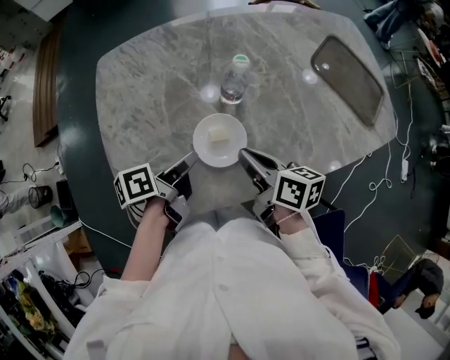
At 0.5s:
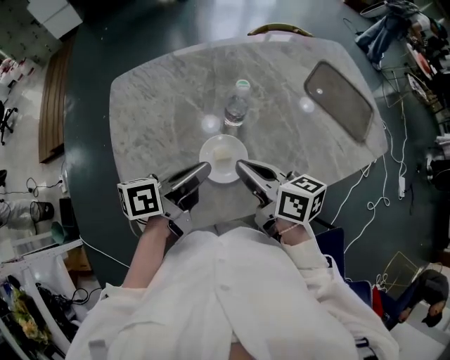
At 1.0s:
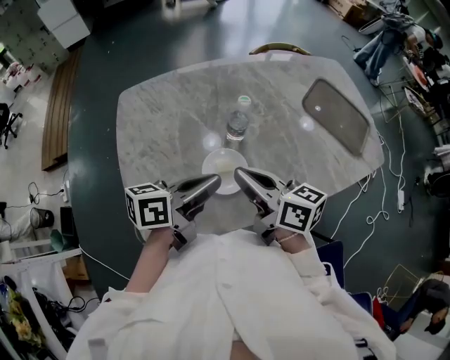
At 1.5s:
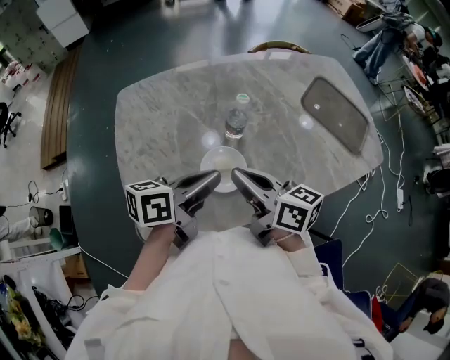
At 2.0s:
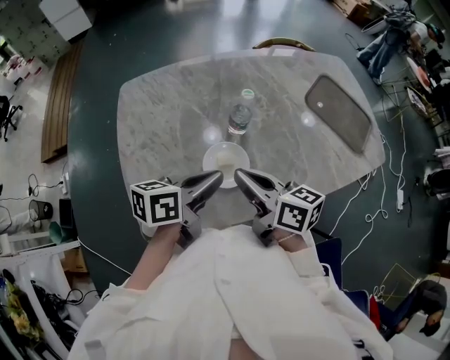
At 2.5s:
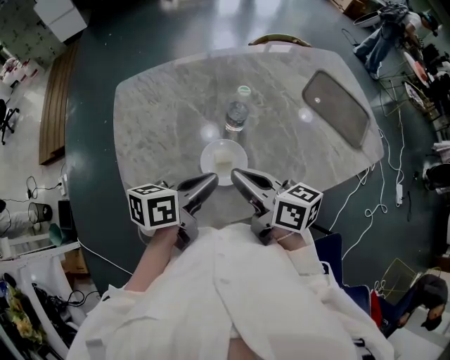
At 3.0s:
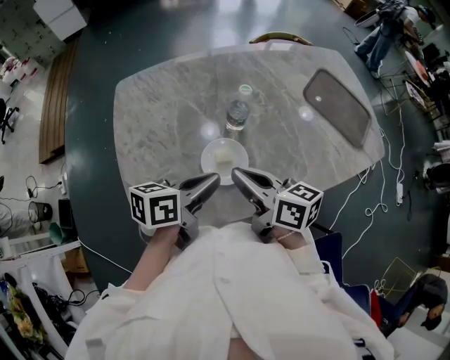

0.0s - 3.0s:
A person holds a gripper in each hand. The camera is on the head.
0.0s - 1.5s: The right gripper travels upward by about 10 cm.

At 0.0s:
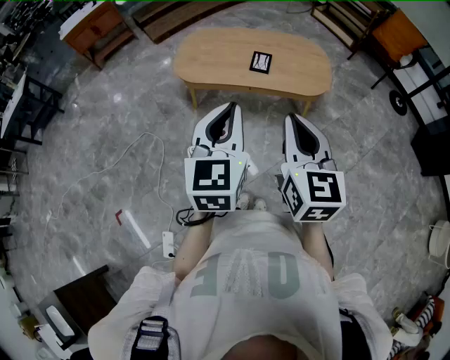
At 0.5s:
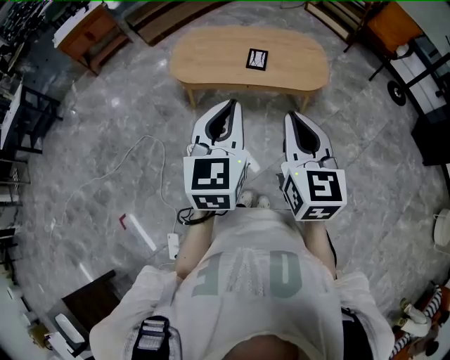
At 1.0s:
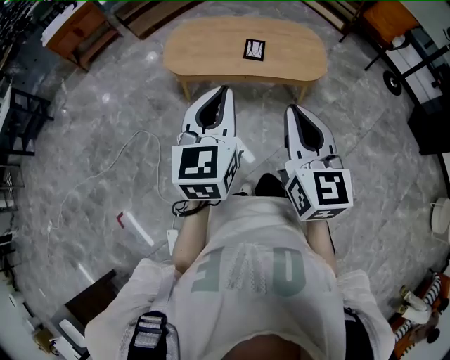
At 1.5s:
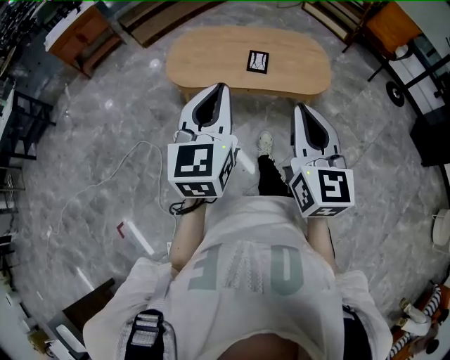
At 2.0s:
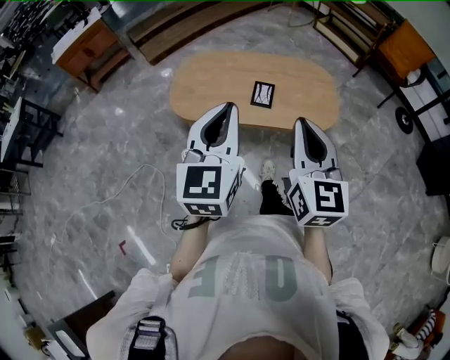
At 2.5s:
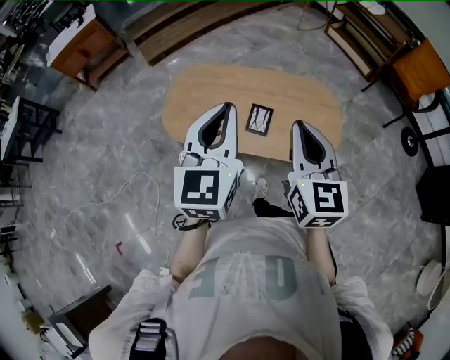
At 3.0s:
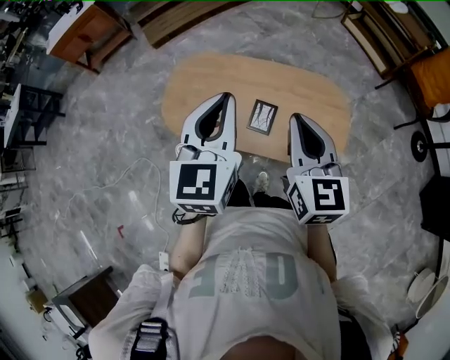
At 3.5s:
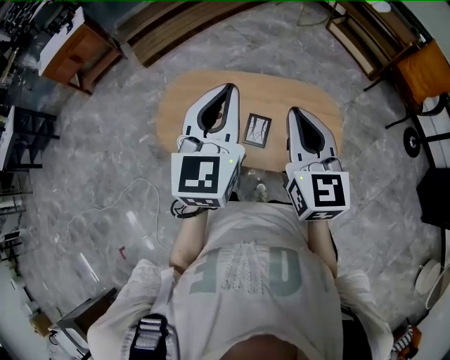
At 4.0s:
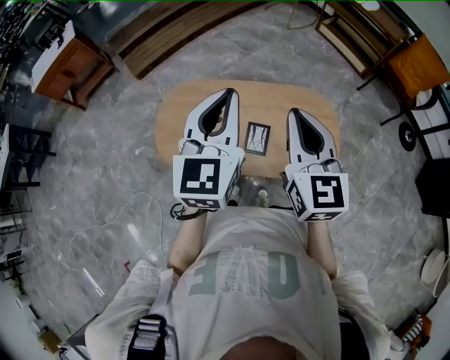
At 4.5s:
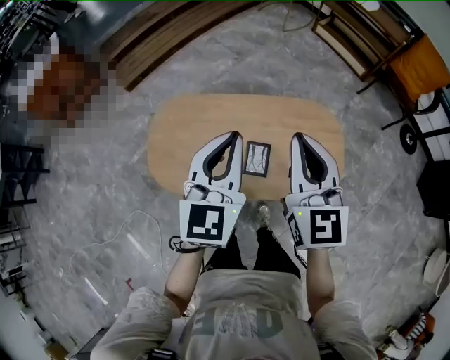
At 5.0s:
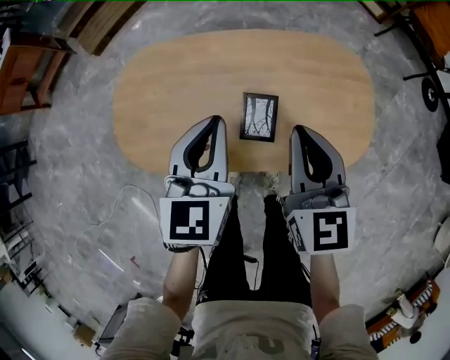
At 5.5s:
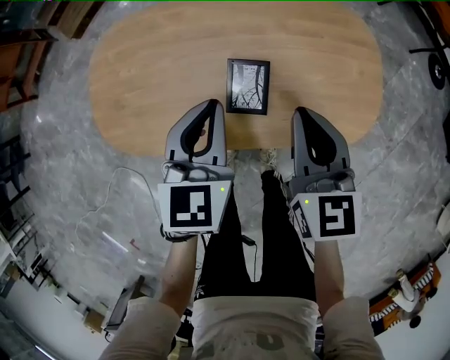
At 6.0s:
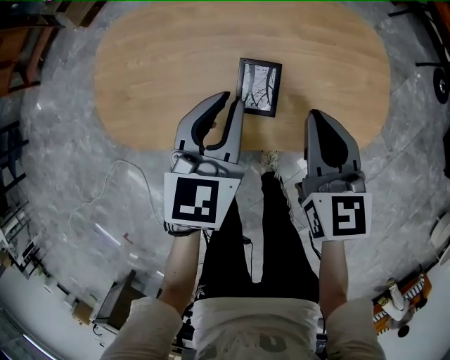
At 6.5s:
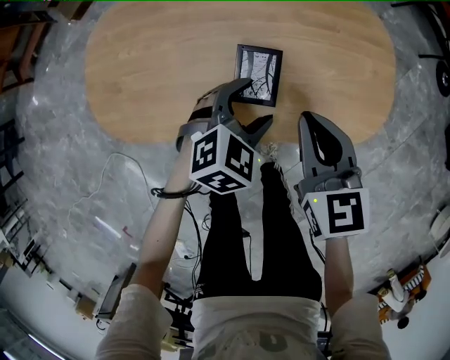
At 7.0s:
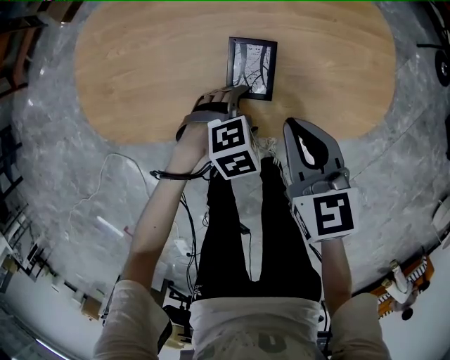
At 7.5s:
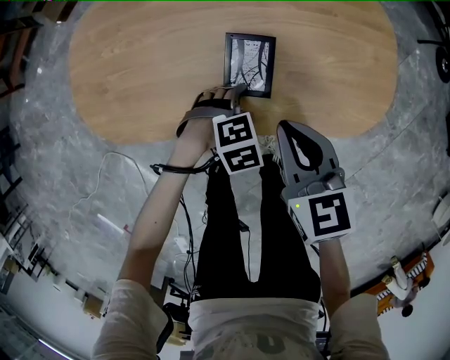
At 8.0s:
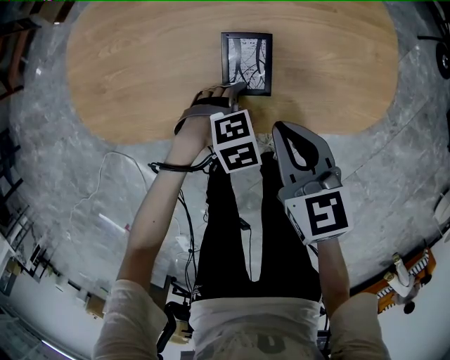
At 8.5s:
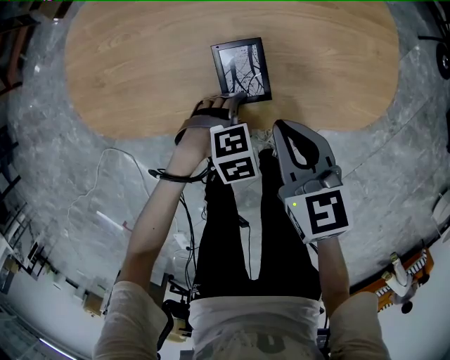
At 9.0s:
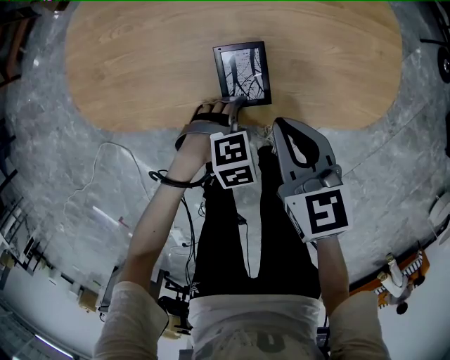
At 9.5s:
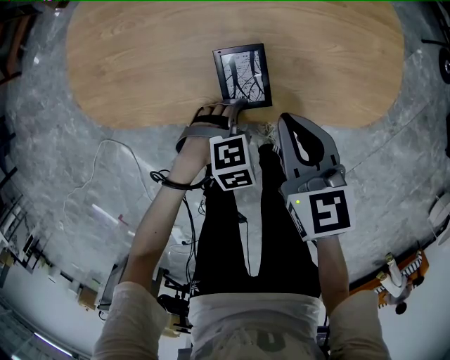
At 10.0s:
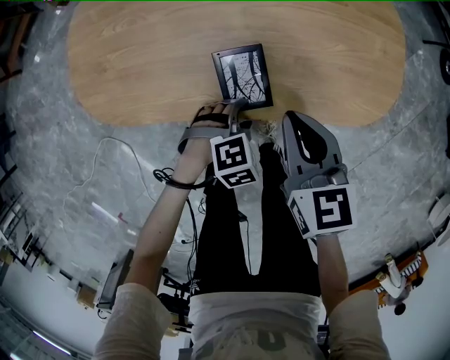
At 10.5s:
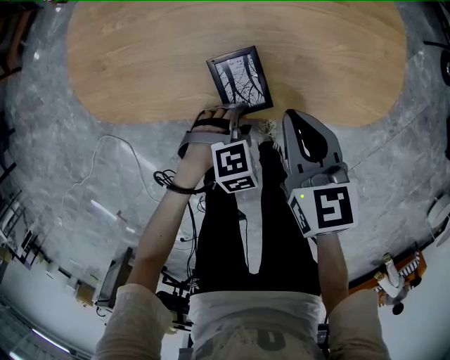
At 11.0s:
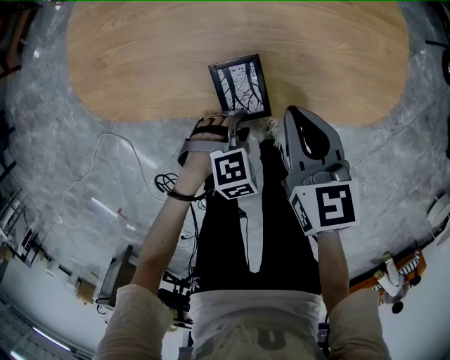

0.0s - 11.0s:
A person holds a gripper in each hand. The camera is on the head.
0.0s - 2.0s: The grippers both shift forward by approximately 20 cm.
2.0s - 3.5s: The two grippers go roughly 30 cm forward.
3.5s - 5.5s: The two grippers go some 35 cm downward. The right gripper swivels approximately 20 degrees, while the left gripper rotates roughly 20 degrees.
5.5s - 7.5s: The left gripper goes about 25 cm downward, points its fingers about 50 degrees further downward, and opens, while the right gripper heads downward, covering about 10 cm.
7.5s - 9.0s: The left gripper changes place by some 5 cm.
9.0s - 11.0s: The left gripper closes.

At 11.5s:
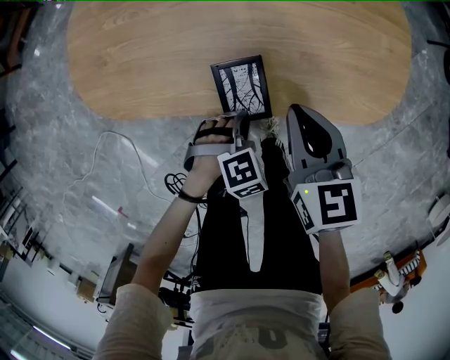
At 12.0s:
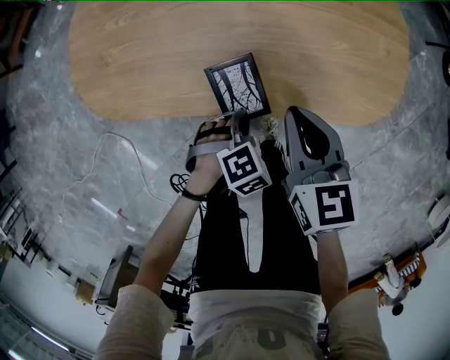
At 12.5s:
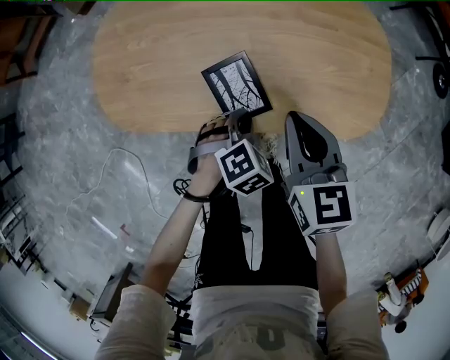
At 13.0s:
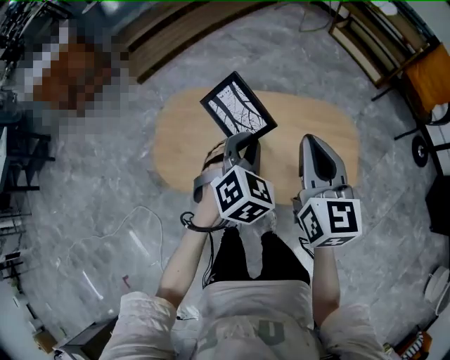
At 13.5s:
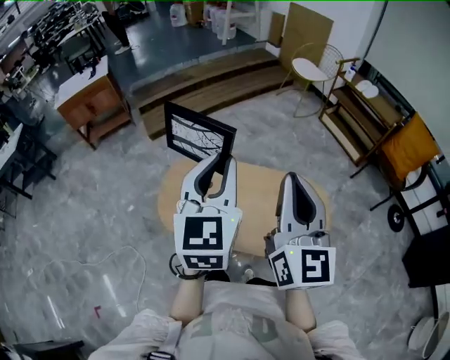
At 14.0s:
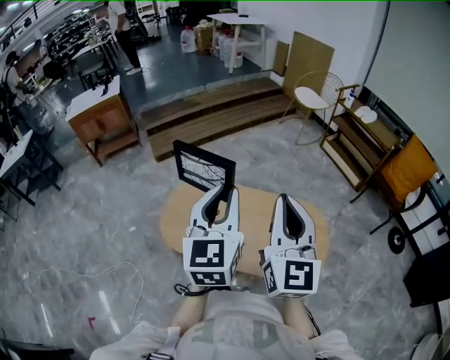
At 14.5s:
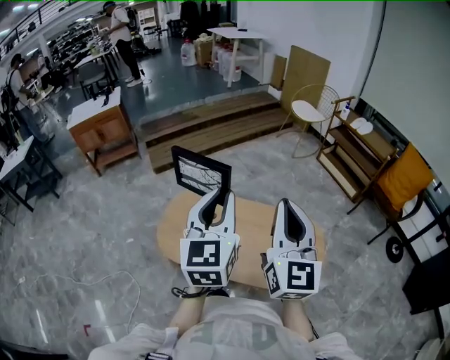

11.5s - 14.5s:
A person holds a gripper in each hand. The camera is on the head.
11.5s - 13.0s: Both grippers move upward, some 35 cm. The left gripper points its fingers approximately 30 degrees further upward; the right gripper rotates approximately 30 degrees.
13.0s - 14.5s: The left gripper goes roughly 30 cm upward, and tips its fingers upward by roughly 40 degrees. Meanwhile the right gripper travels upward and backward by roughly 25 cm, and turns by roughly 30 degrees.

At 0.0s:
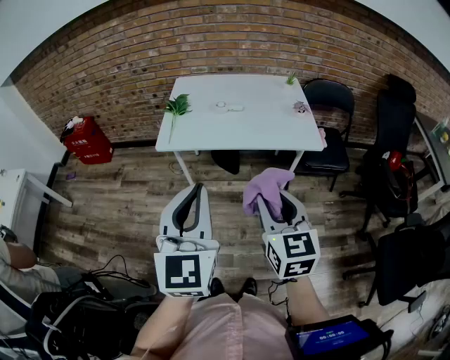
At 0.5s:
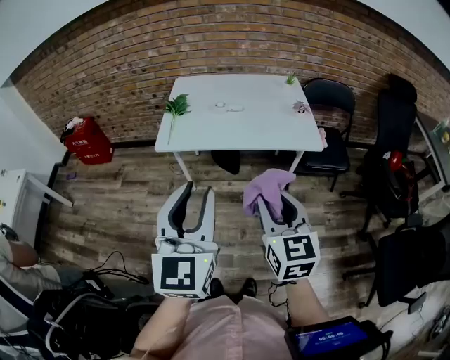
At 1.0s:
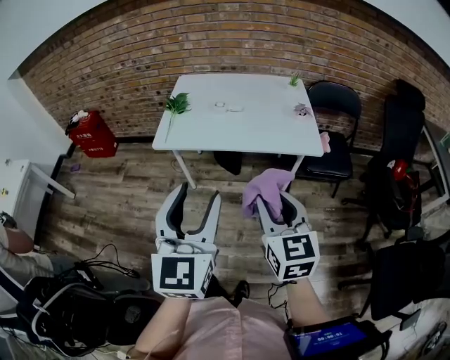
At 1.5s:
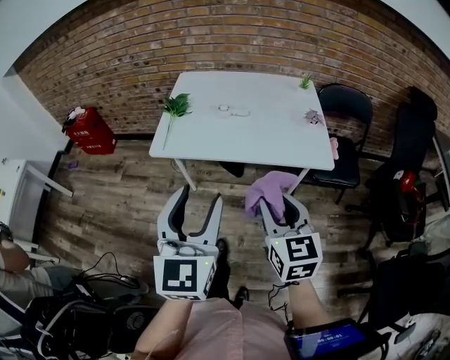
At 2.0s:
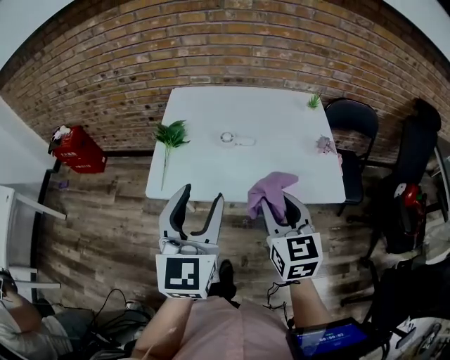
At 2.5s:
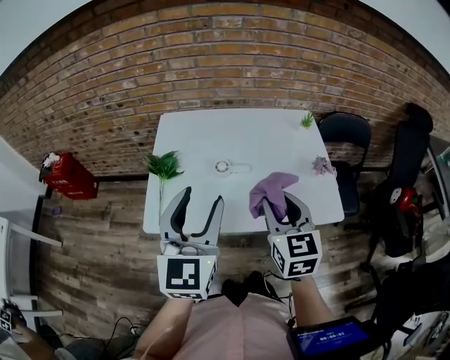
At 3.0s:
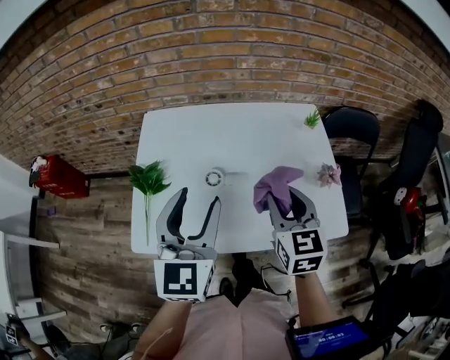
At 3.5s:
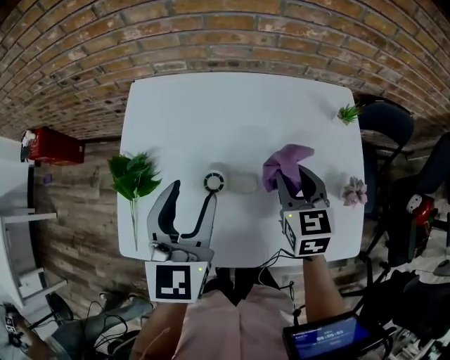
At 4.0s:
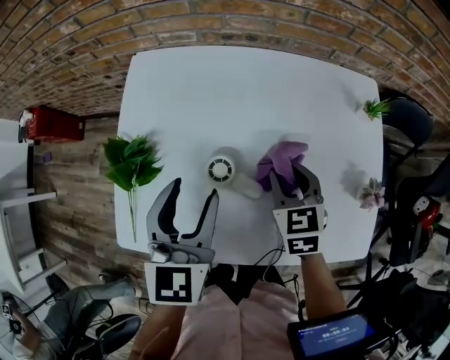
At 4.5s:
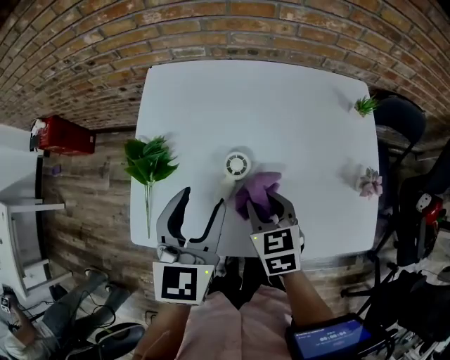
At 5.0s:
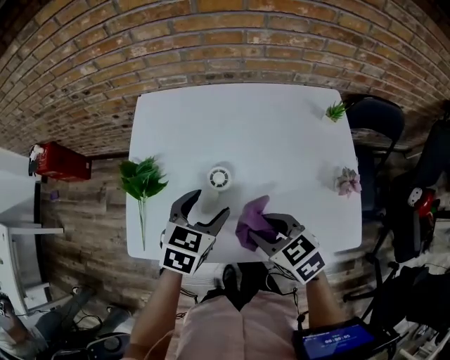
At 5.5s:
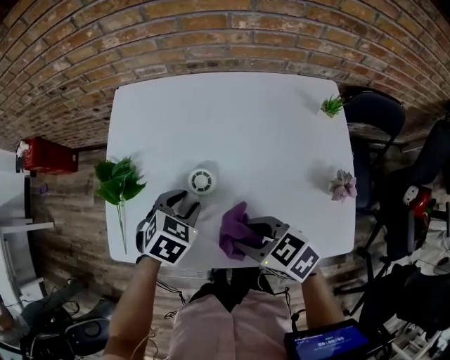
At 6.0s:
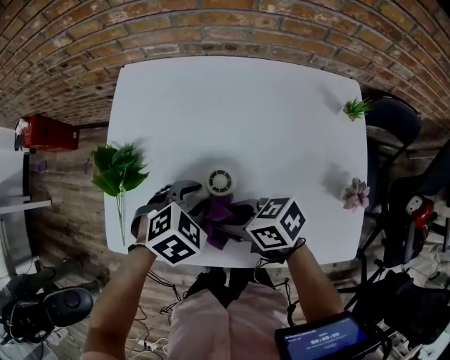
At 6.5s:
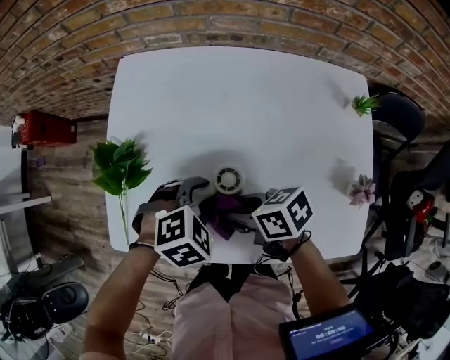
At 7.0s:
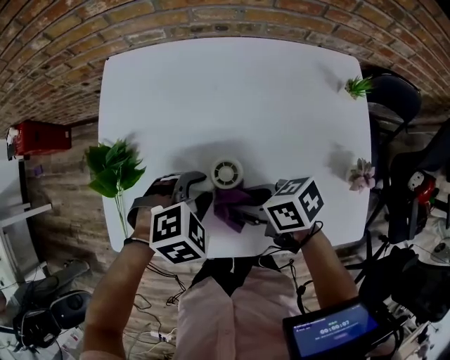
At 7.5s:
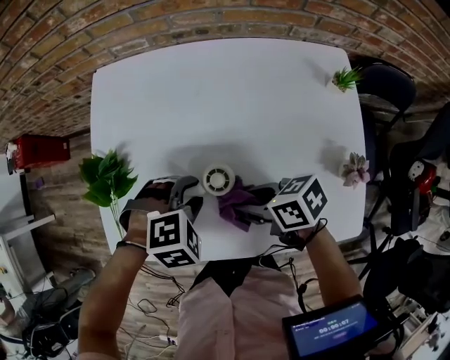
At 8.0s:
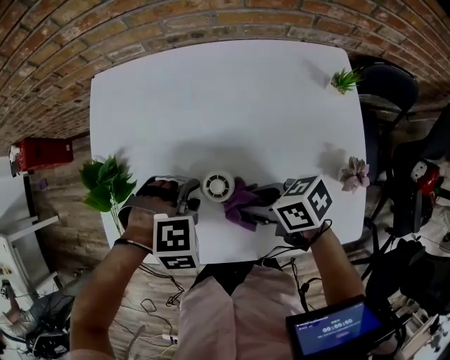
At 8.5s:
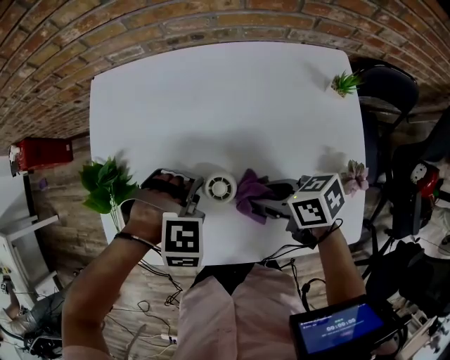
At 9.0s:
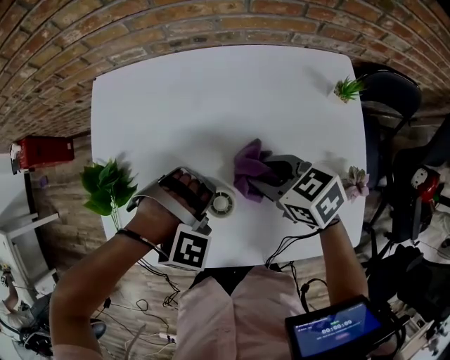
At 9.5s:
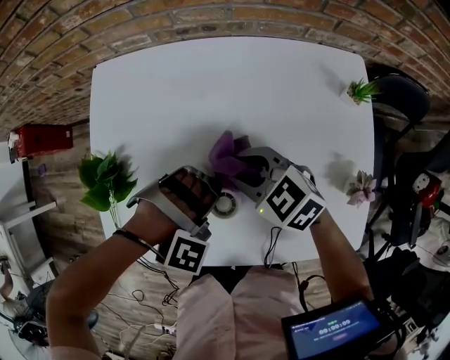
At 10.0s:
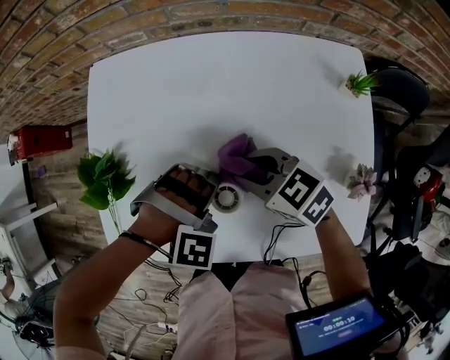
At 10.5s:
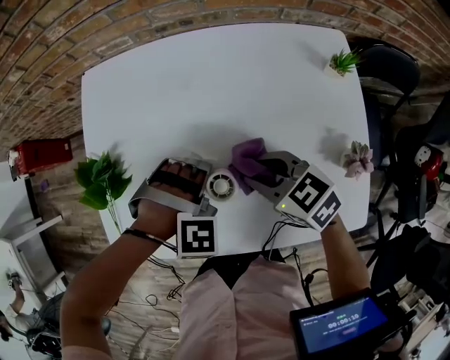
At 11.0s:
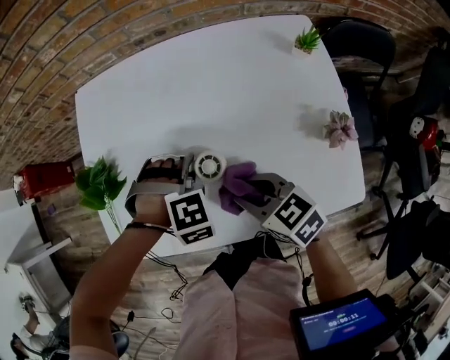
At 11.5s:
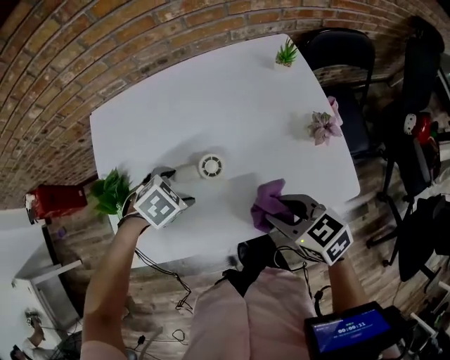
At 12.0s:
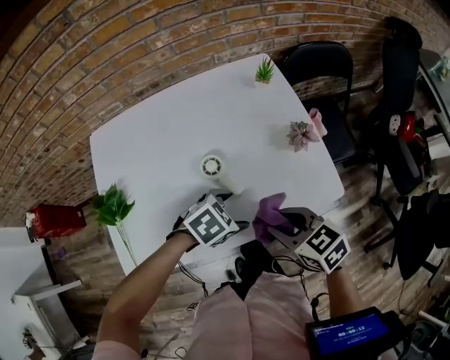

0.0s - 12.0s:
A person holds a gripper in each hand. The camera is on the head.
0.0s - 2.0s: The two grippers go roughly 25 cm forward. The left gripper opens up.
2.0s - 4.0s: The grippers both shift forward and downward by about 35 cm. The right gripper swivels roughly 30 degrees.
4.0s - 6.0s: The right gripper moves about 15 cm, and swivels some 60 degrees, while the left gripper heads downward, covering some 15 cm, and tilts its fingers roughly 40 degrees downward.
6.0s - 8.0s: The left gripper turns by about 40 degrees. Meanwhile the right gripper shifts by roughly 10 cm.
8.0s - 10.0s: The left gripper rotates roughly 30 degrees. Meanwhile the right gripper shifts by about 10 cm, and swivels roughly 40 degrees.
10.0s - 12.0s: The left gripper moves approximately 15 cm, rotates around the line of its fingers by about 50 degrees, counterclockwise from behind, and opens up. The right gripper ends up roughly 25 cm from where it was, and turns by approximately 30 degrees.
